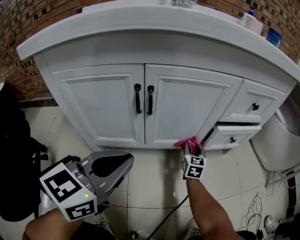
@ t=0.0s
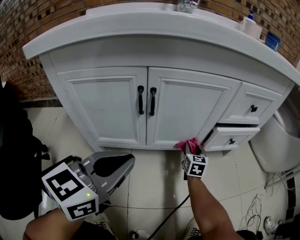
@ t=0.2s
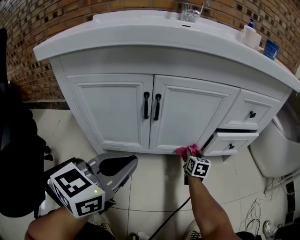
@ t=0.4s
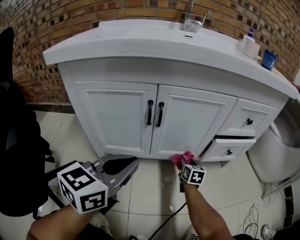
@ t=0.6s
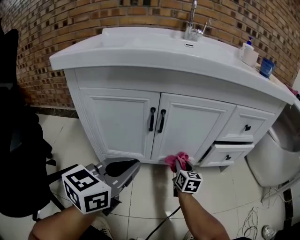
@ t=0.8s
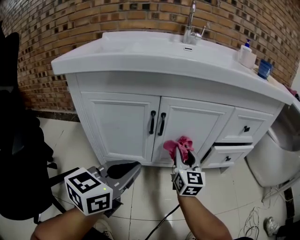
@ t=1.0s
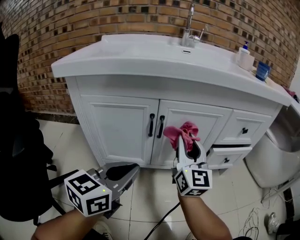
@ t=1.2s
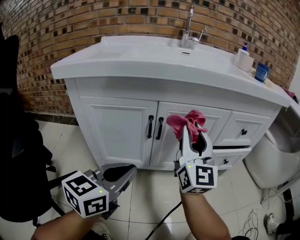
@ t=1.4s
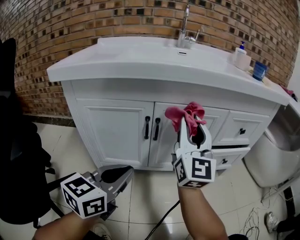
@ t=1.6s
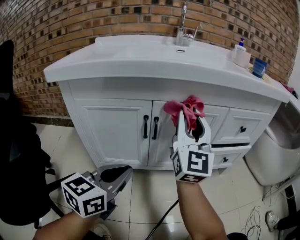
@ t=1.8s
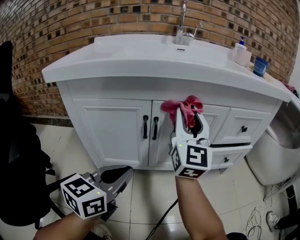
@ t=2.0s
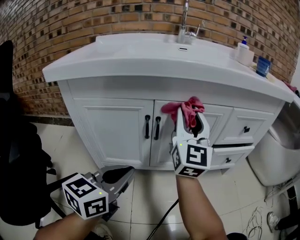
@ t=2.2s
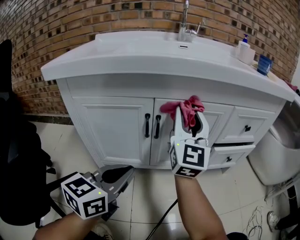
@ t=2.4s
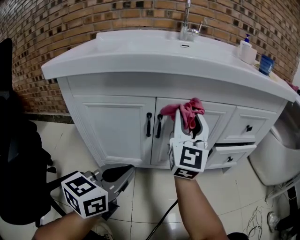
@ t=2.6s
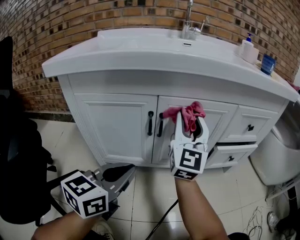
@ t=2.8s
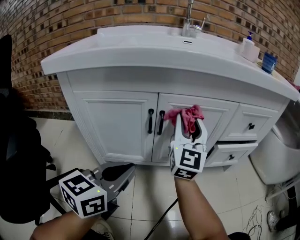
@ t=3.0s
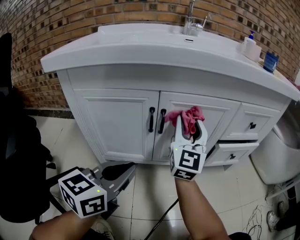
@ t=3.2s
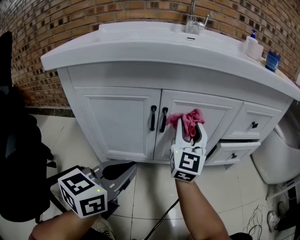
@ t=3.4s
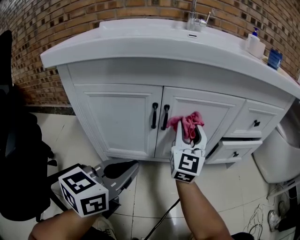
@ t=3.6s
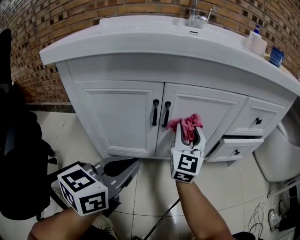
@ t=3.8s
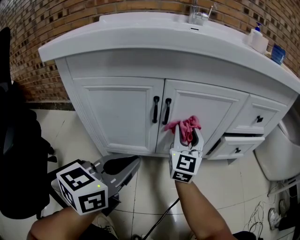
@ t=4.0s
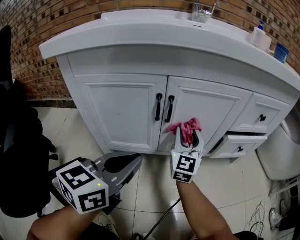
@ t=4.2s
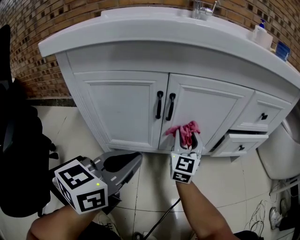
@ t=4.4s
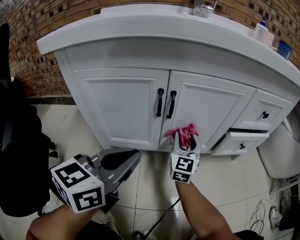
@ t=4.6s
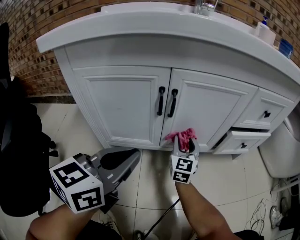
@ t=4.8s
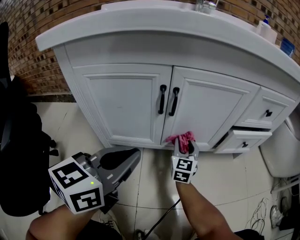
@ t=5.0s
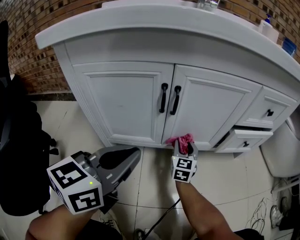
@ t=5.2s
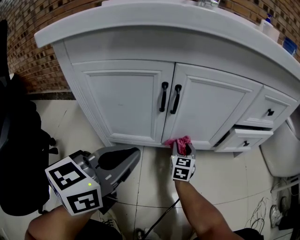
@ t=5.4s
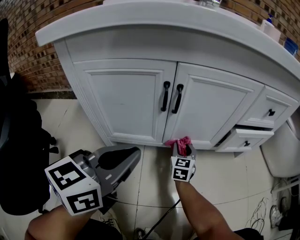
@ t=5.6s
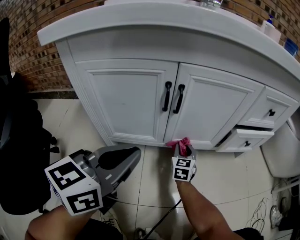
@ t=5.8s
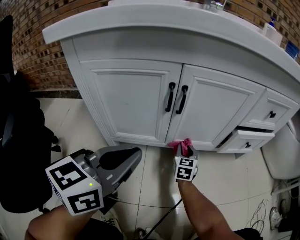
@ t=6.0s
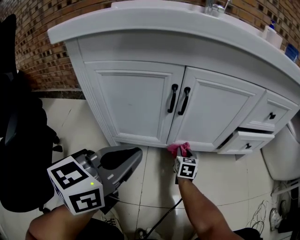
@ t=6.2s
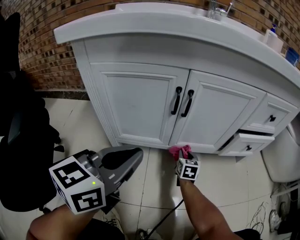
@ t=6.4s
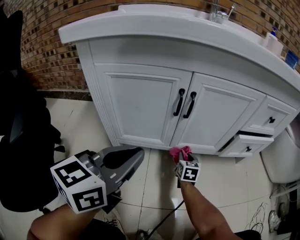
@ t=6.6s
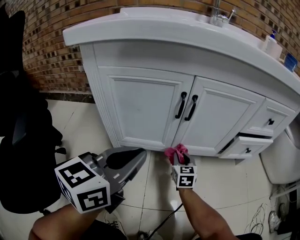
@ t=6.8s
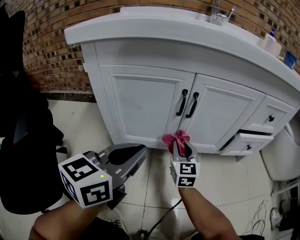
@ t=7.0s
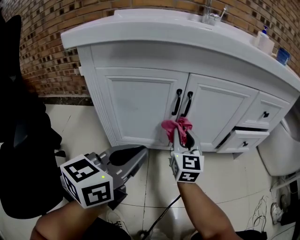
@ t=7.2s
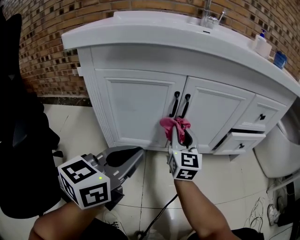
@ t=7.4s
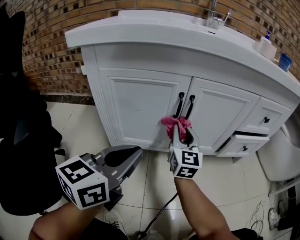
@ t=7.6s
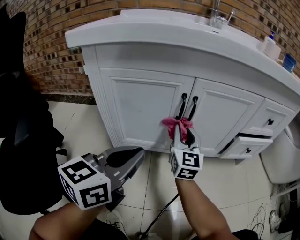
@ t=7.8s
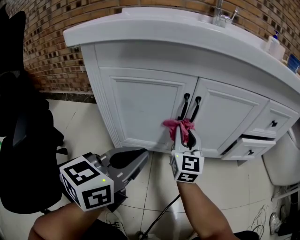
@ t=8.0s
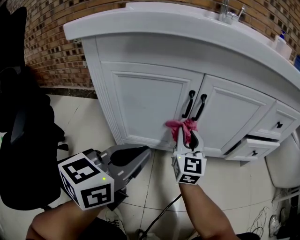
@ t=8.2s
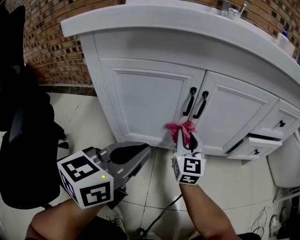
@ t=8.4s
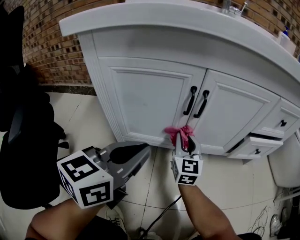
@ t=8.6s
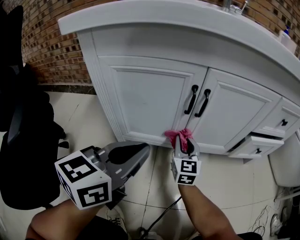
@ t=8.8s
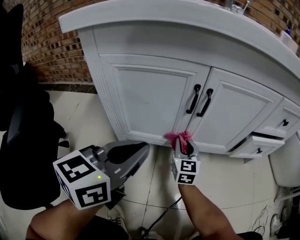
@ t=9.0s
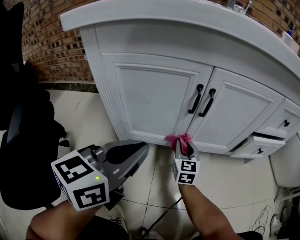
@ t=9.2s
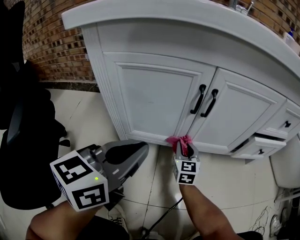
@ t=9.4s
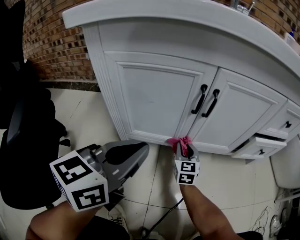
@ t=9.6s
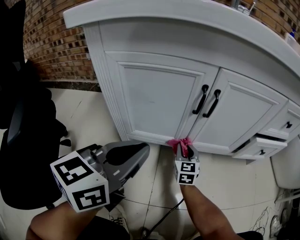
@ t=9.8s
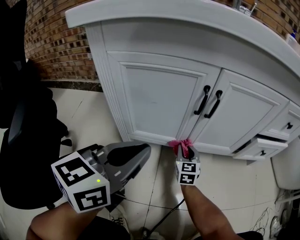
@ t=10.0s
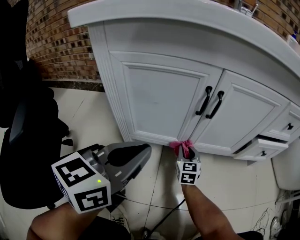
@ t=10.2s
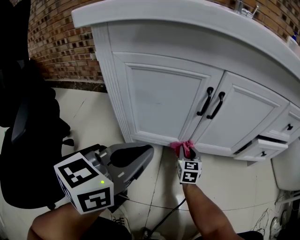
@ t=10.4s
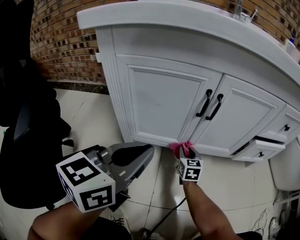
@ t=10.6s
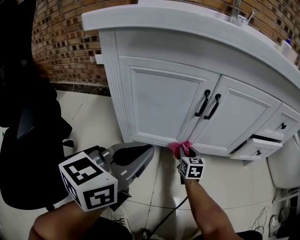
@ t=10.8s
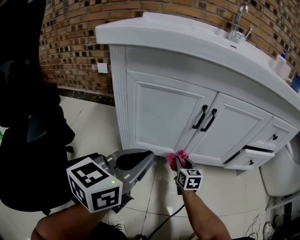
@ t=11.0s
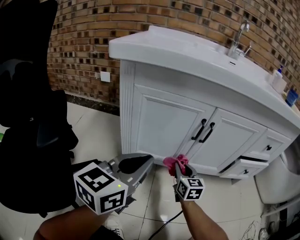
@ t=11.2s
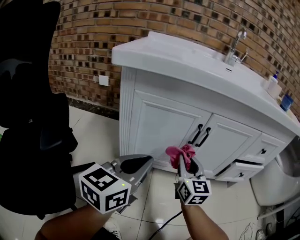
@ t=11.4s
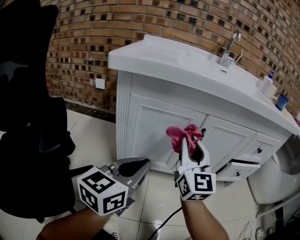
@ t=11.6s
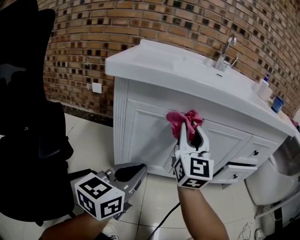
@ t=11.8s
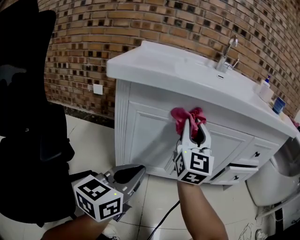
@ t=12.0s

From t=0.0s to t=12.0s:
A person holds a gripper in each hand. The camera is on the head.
From t=0.0s to t=1.6s: The right gripper travels upward by approximately 40 cm, and points its fingers approximately 40 degrees further upward.
From t=1.6s to t=3.0s: The right gripper goes approximately 5 cm downward.
From t=3.0s to t=4.4s: The right gripper goes about 15 cm downward.
From t=4.4s to t=6.0s: The right gripper moves downward, approximately 20 cm, and swivels about 30 degrees.
From t=6.0s to t=7.6s: The right gripper heads upward, covering roughly 20 cm, and turns by approximately 30 degrees.
From t=7.6s to t=9.0s: The right gripper heads downward, covering approximately 15 cm.
From t=9.0s to t=10.4s: The right gripper is displaced downward by some 10 cm.
From t=10.4s to t=12.0s: The right gripper travels upward by some 40 cm, and angles its fingers upward, by approximately 40 degrees; the left gripper moves approximately 5 cm.

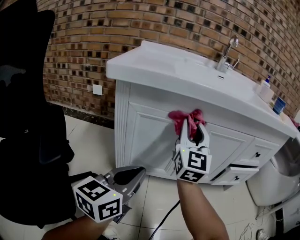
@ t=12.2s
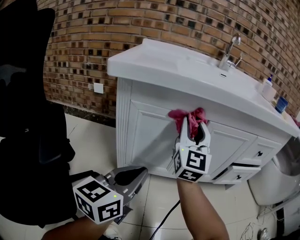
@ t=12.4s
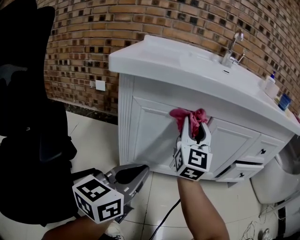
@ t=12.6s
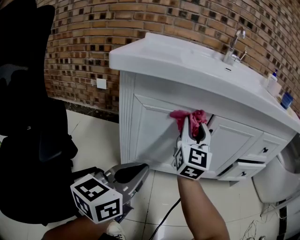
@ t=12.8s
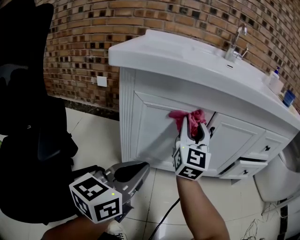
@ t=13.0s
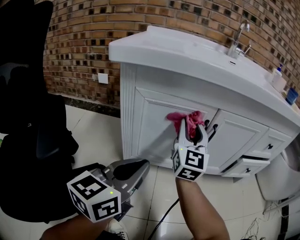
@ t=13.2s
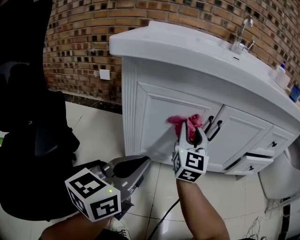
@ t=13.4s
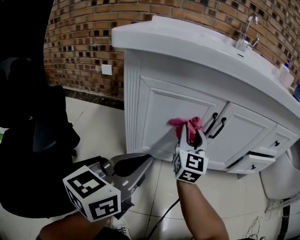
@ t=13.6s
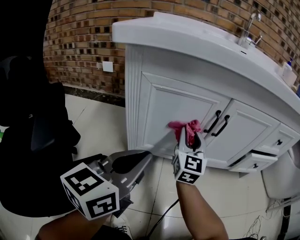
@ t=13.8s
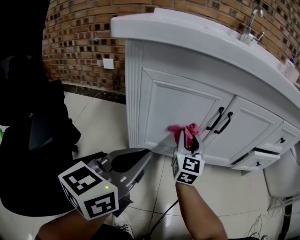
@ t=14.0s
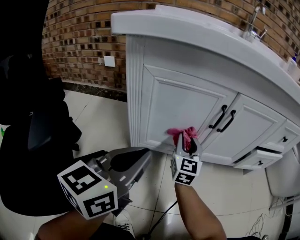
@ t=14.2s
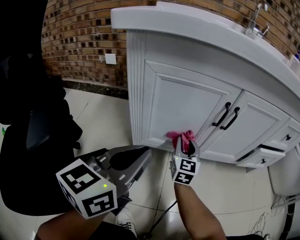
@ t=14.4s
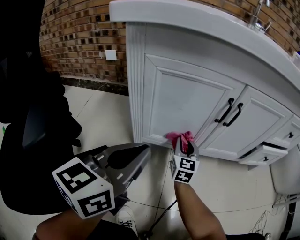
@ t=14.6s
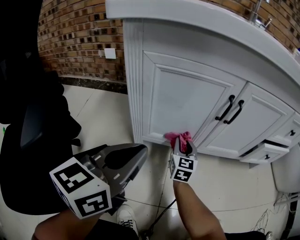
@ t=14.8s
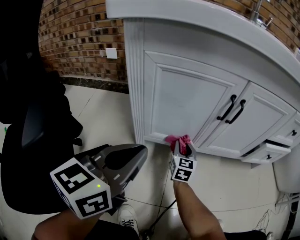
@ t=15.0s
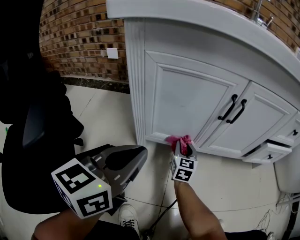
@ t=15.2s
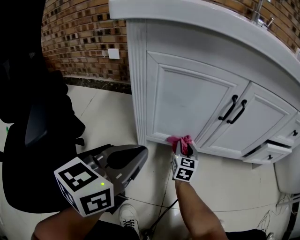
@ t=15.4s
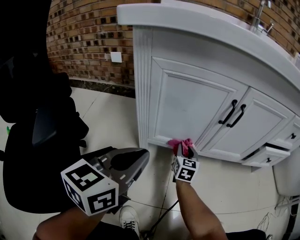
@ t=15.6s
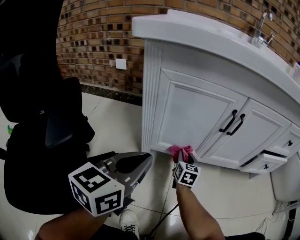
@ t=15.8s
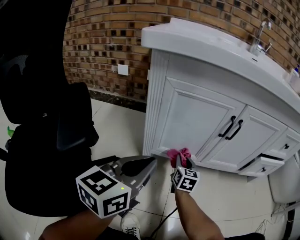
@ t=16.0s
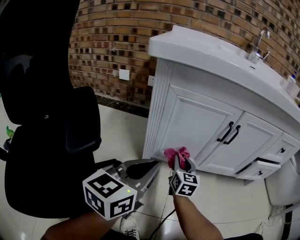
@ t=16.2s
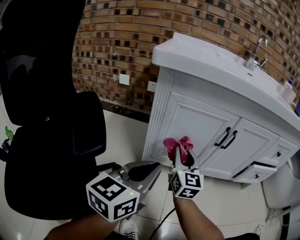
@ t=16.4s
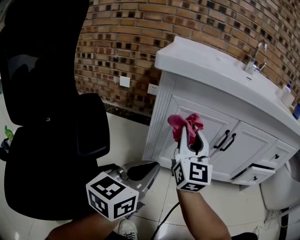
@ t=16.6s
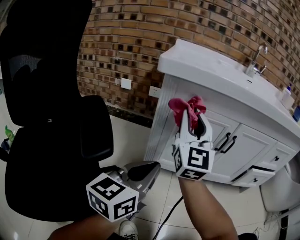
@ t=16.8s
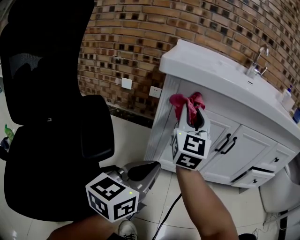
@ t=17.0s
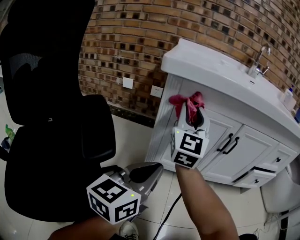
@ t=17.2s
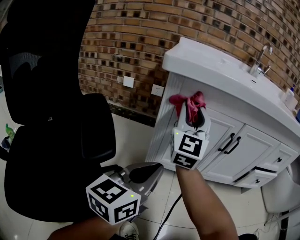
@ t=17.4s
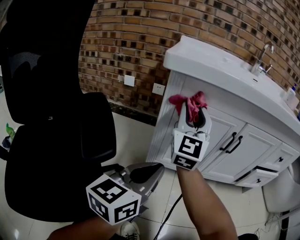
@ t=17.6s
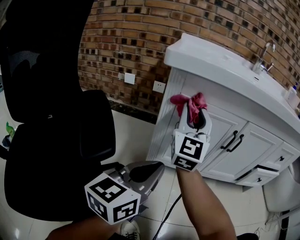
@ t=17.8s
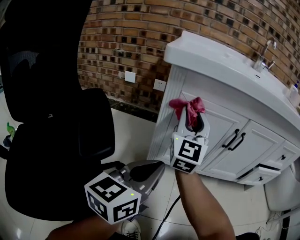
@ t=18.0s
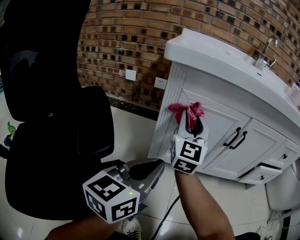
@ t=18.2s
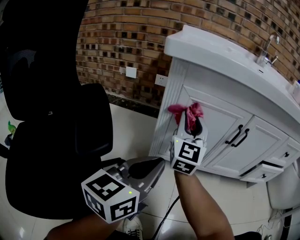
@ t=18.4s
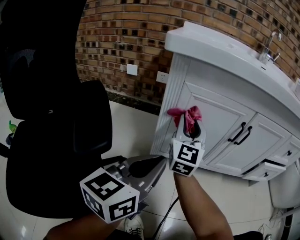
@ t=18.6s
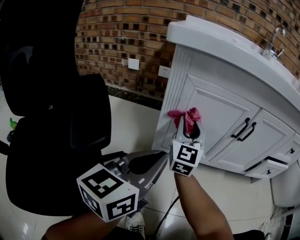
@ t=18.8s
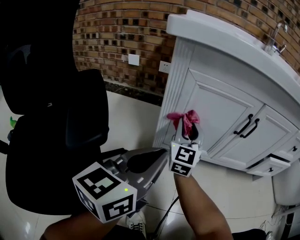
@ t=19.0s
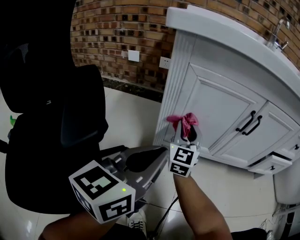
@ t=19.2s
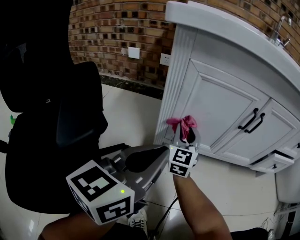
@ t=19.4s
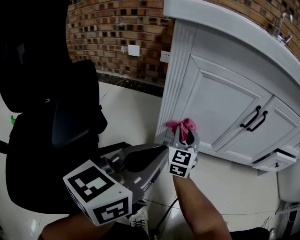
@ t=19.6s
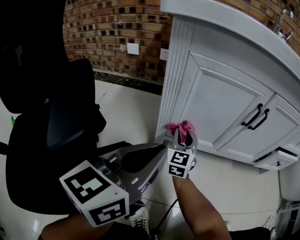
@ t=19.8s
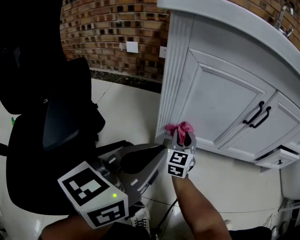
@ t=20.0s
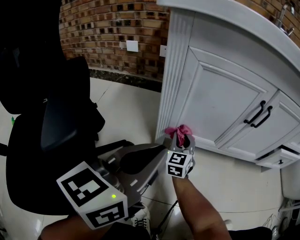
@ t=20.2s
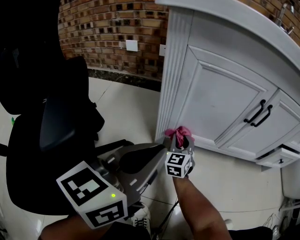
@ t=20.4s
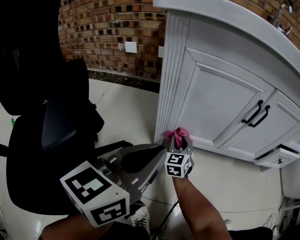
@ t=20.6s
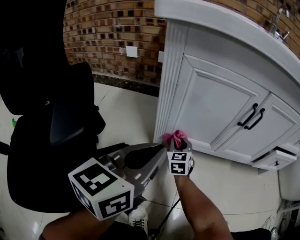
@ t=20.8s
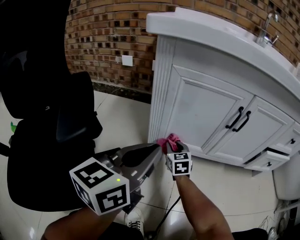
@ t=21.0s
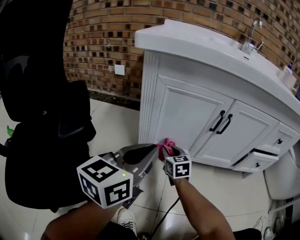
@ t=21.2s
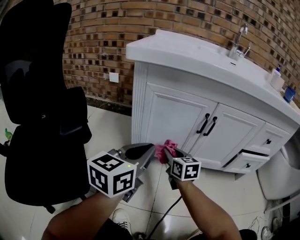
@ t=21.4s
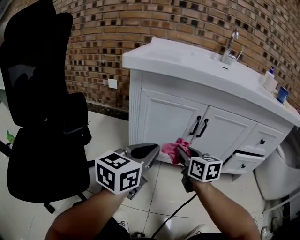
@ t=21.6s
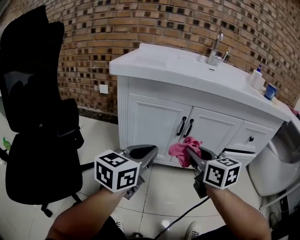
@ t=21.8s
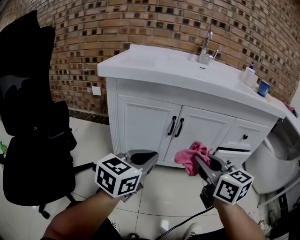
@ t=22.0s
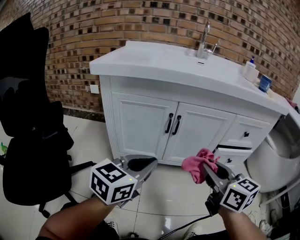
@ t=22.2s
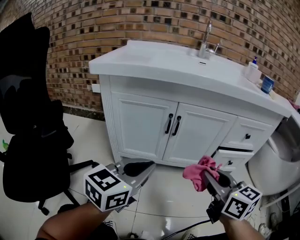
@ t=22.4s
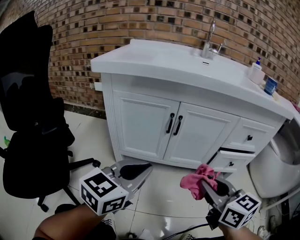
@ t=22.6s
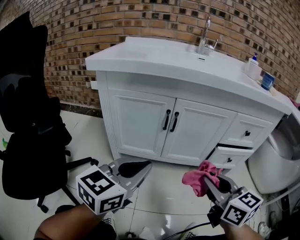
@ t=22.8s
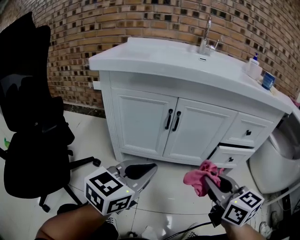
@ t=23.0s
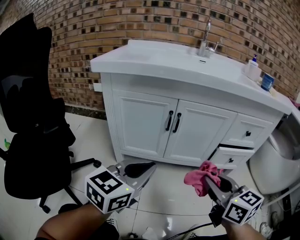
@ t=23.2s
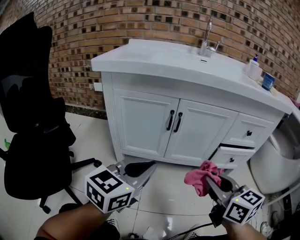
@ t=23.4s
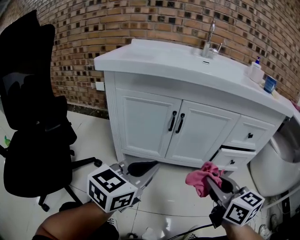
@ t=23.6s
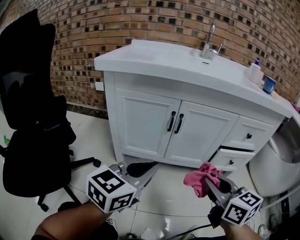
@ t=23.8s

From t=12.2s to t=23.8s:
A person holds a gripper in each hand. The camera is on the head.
From t=12.2s to t=13.6s: The right gripper travels downward by roughly 15 cm.
From t=13.6s to t=15.0s: The right gripper goes approximately 25 cm downward, and changes its angle by about 20 degrees.
From t=15.0s to t=16.6s: The left gripper moves about 5 cm; the right gripper shifts about 35 cm upward, and tips its fingers upward by roughly 30 degrees.
From t=16.6s to t=18.0s: The right gripper changes place by some 5 cm.
From t=18.0s to t=19.4s: The right gripper travels downward by some 20 cm.
From t=19.4s to t=21.0s: The right gripper goes some 10 cm downward, and changes its angle by about 30 degrees.
From t=21.0s to t=22.4s: The left gripper goes about 20 cm to the right, and turns by approximately 20 degrees. Meanwhile the right gripper heads to the right, upward and backward, covering about 50 cm, and changes its angle by roughly 20 degrees.
From t=22.4s to t=23.8s: The grippers move only a little.
